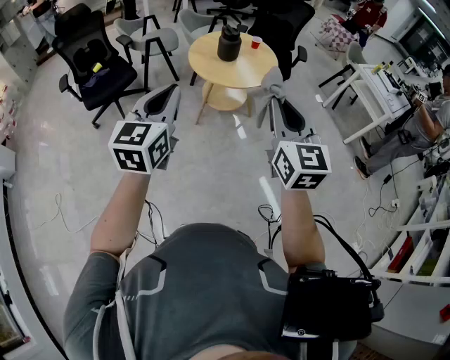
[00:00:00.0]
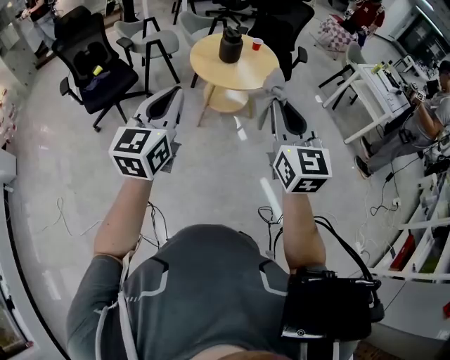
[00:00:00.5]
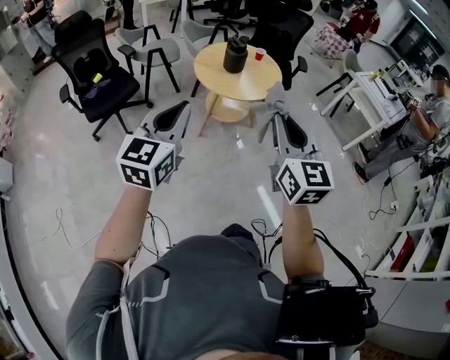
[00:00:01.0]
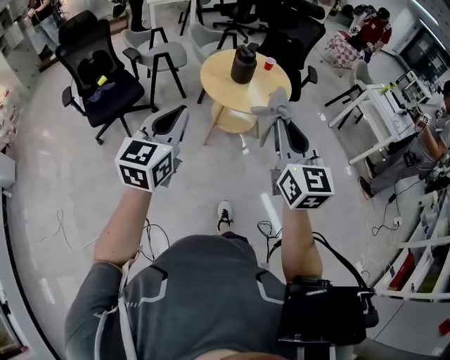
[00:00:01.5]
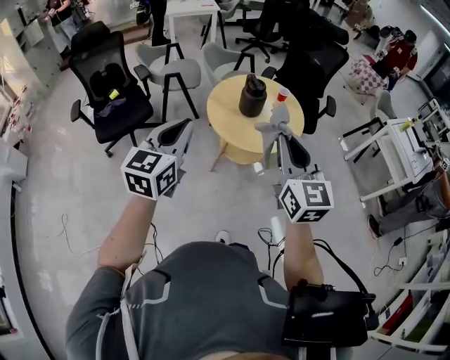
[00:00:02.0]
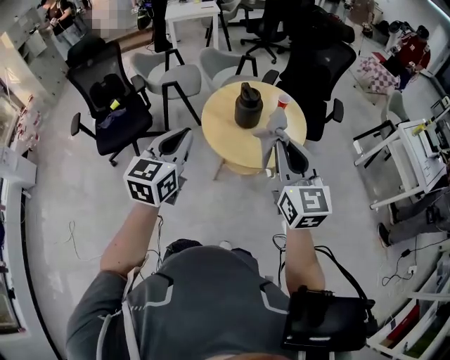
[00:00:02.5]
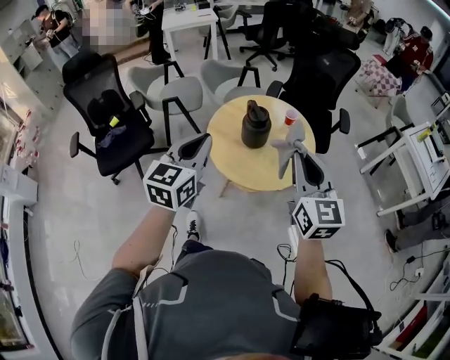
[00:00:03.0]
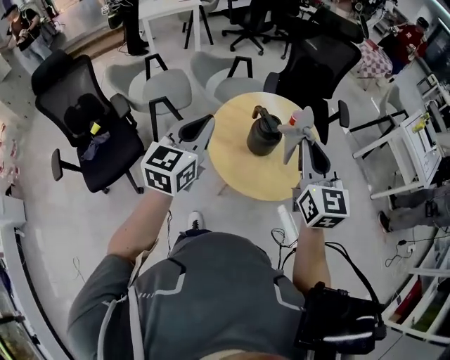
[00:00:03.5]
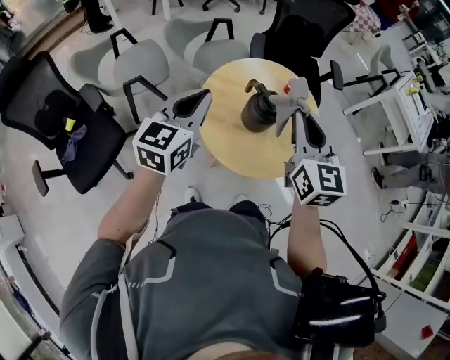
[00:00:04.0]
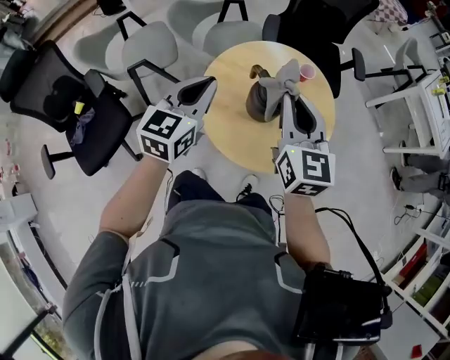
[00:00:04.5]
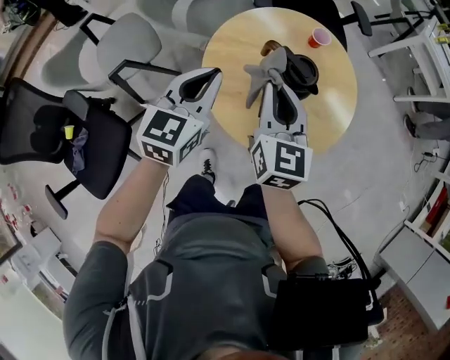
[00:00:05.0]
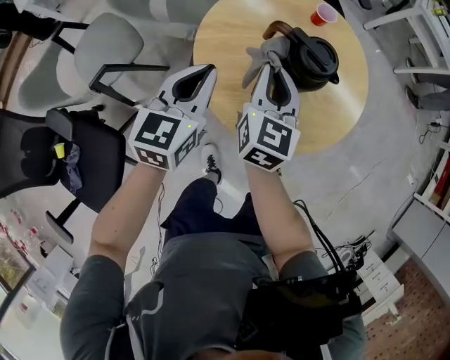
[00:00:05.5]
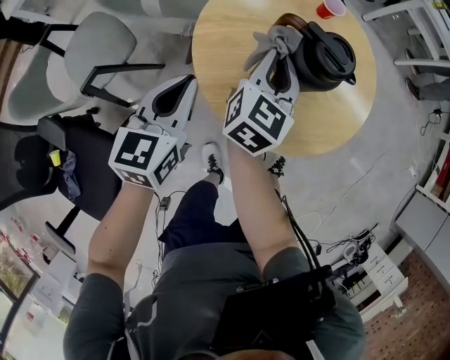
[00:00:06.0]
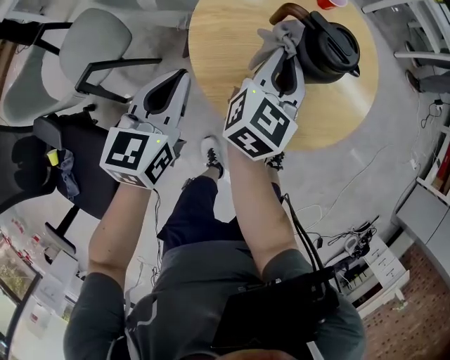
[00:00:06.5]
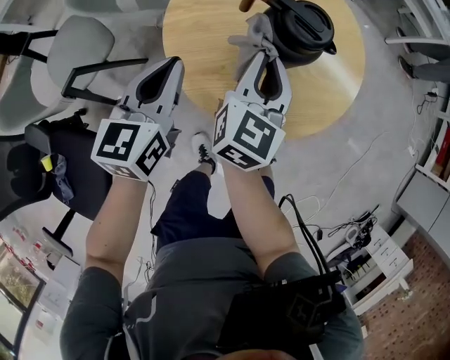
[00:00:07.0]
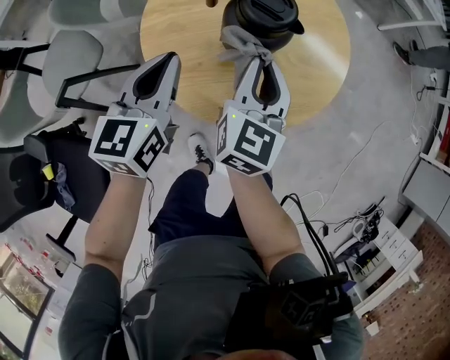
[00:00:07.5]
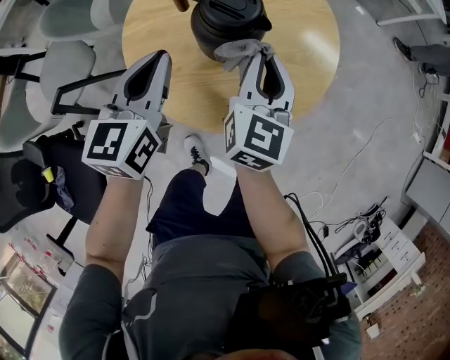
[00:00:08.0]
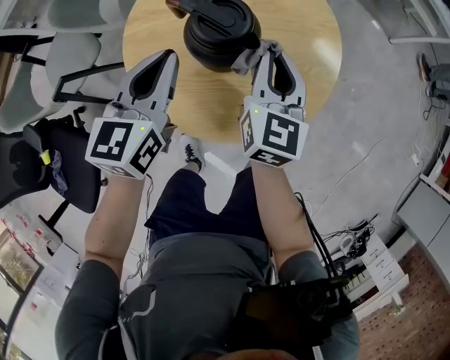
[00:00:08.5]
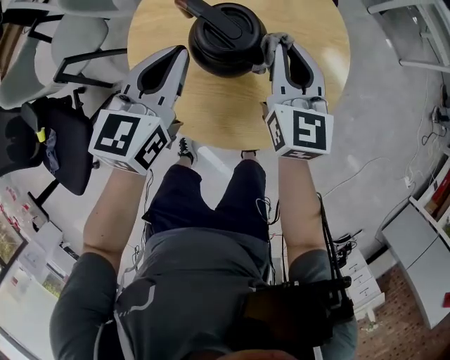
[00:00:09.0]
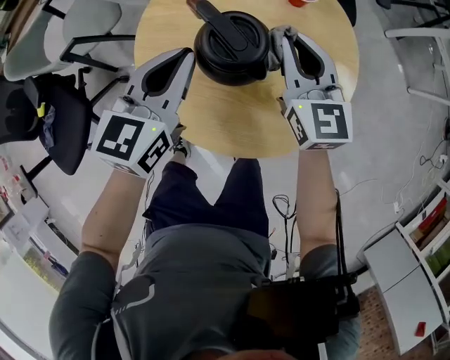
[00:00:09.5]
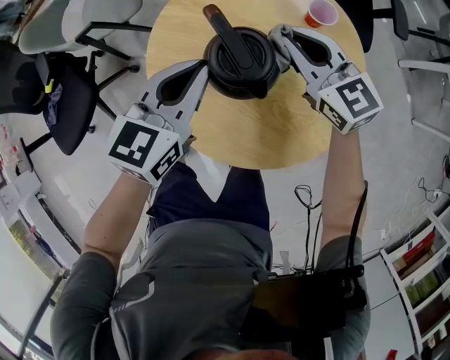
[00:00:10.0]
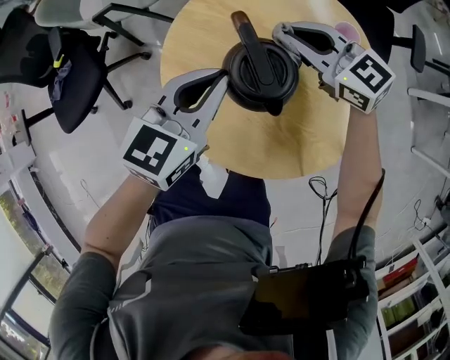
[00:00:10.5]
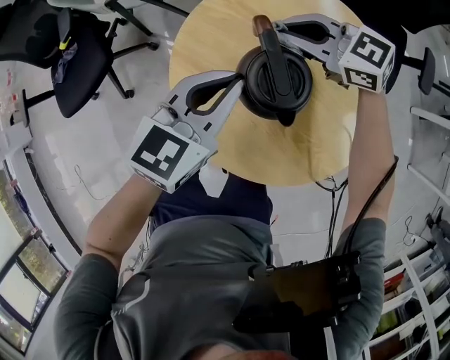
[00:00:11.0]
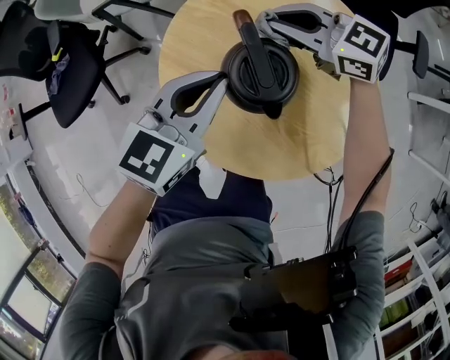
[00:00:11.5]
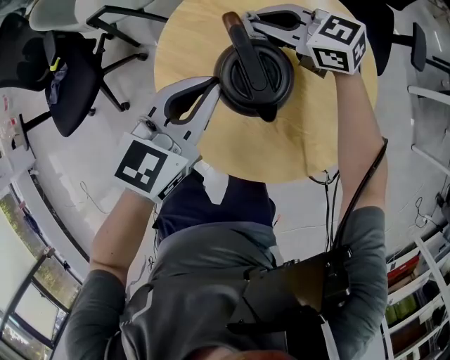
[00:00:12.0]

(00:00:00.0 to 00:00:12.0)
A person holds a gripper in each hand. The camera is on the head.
00:00:00.0 - 00:00:02.0: The grippers both shift forward by about 25 cm.
00:00:02.0 - 00:00:04.0: Both grippers move forward, roughly 40 cm. The right gripper swivels some 20 degrees. The left gripper changes its angle by some 20 degrees.
00:00:04.0 - 00:00:06.0: The grippers both shift downward by approximately 25 cm. The right gripper swivels roughly 50 degrees.
00:00:06.0 - 00:00:08.0: The left gripper shifts roughly 15 cm to the right and forward, while the right gripper shifts some 15 cm to the right.
00:00:08.0 - 00:00:10.0: The right gripper changes place by some 15 cm, and changes its angle by roughly 80 degrees; the left gripper moves about 5 cm.
00:00:10.0 - 00:00:12.0: The right gripper is displaced forward and to the left by roughly 10 cm, and swivels about 40 degrees.

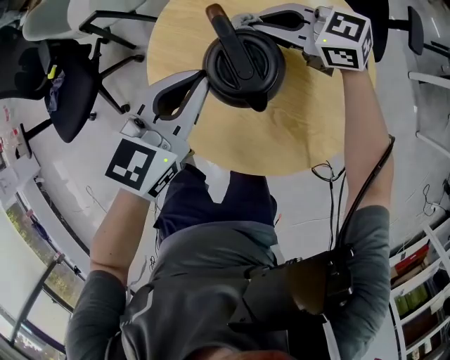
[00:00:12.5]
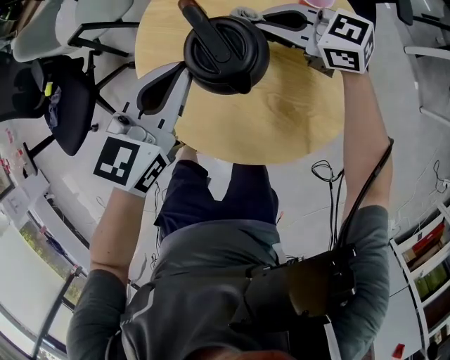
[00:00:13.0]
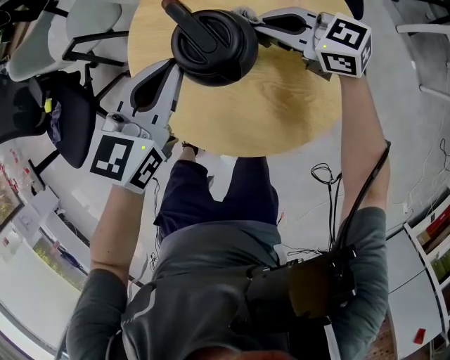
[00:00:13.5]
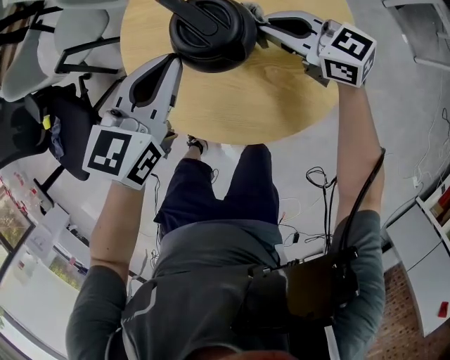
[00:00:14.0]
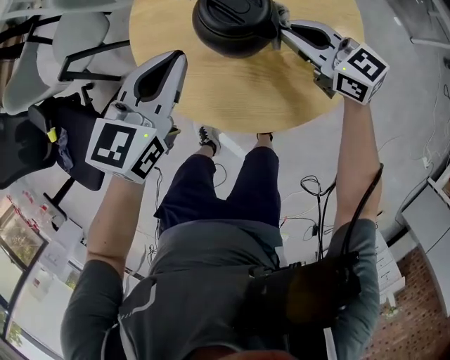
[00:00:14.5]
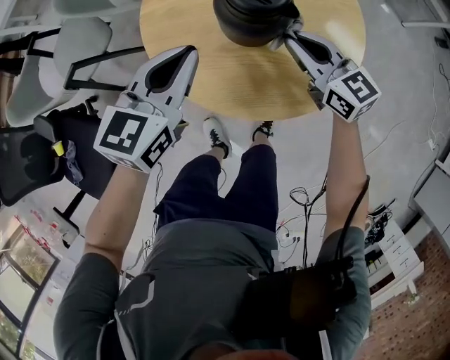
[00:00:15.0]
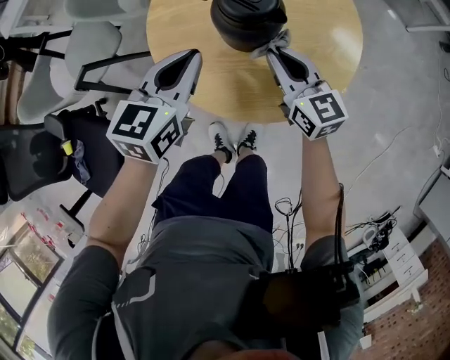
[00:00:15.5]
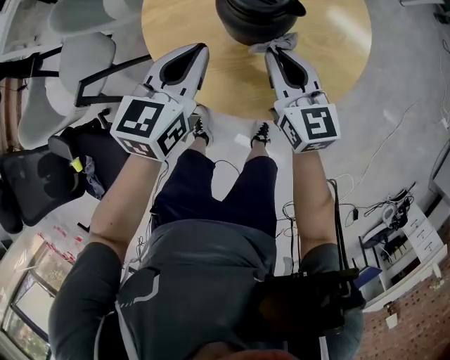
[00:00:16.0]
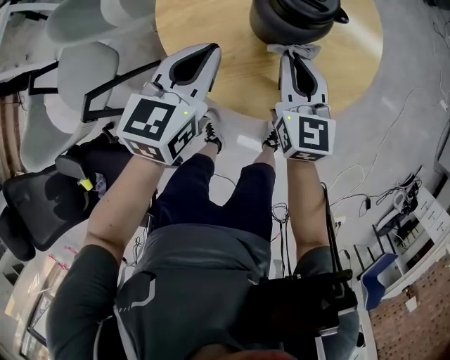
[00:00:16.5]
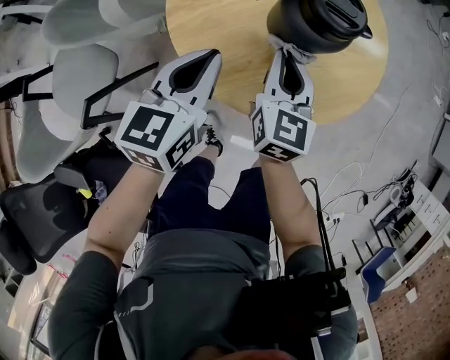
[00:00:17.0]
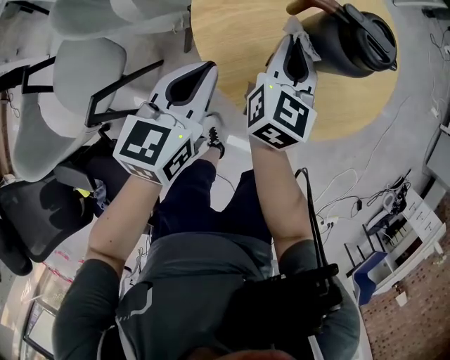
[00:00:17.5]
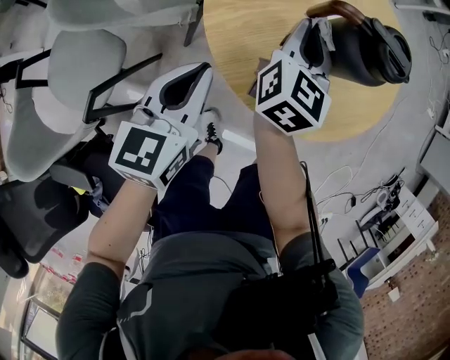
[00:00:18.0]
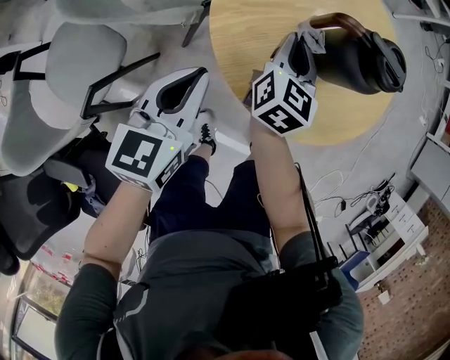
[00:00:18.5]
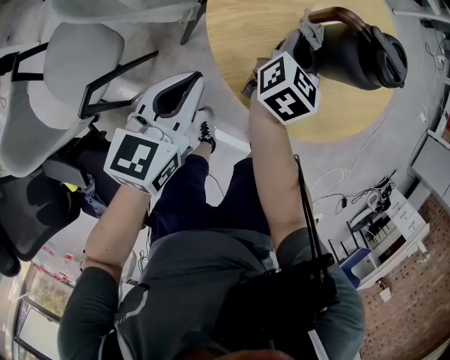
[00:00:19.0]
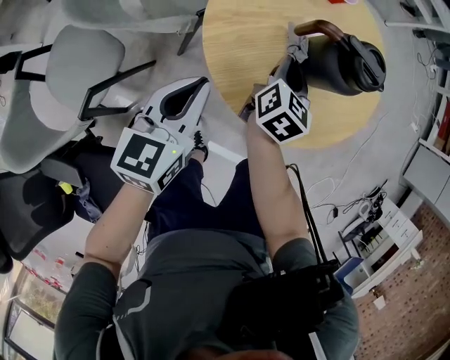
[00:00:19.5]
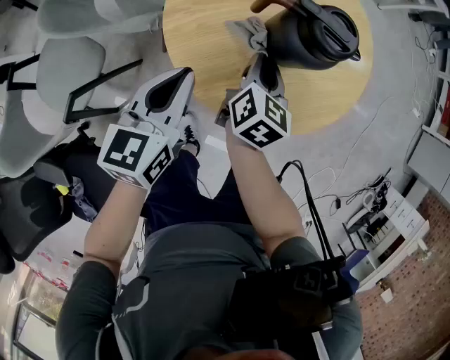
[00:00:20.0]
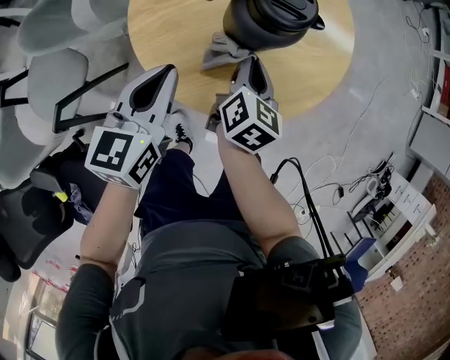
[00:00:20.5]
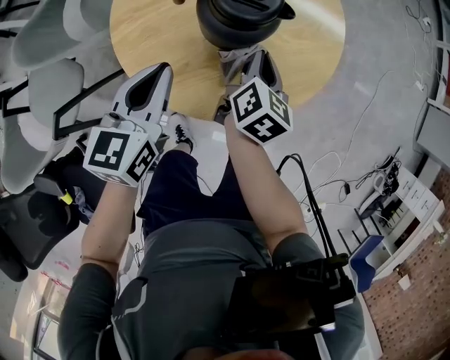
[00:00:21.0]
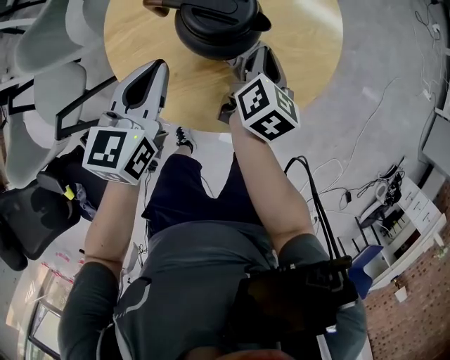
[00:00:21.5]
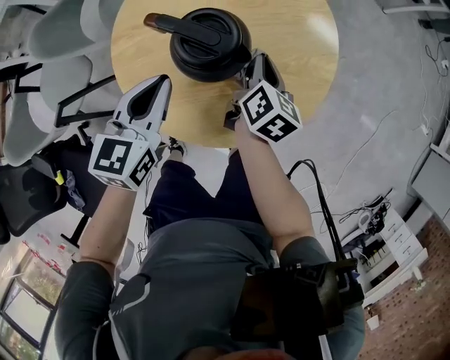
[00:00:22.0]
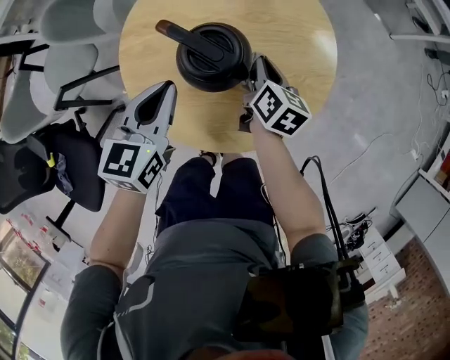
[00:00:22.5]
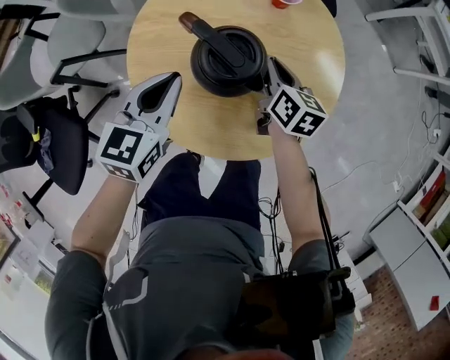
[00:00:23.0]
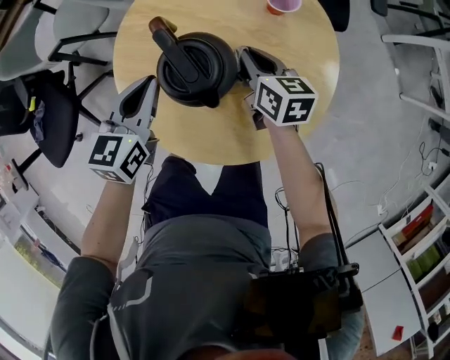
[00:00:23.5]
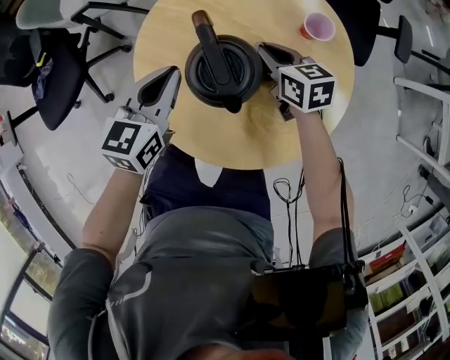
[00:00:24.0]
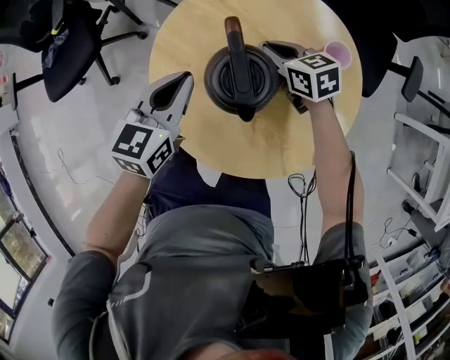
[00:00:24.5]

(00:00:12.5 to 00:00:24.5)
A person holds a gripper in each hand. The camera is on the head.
00:00:12.5 - 00:00:14.5: The right gripper ends up approximately 15 cm from where it was, and turns by roughly 50 degrees.
00:00:14.5 - 00:00:16.5: The left gripper ends up about 10 cm from where it was, and changes its angle by about 20 degrees, while the right gripper shifts by roughly 10 cm, and swivels about 70 degrees.
00:00:16.5 - 00:00:18.5: The right gripper is displaced to the left by roughly 15 cm, and turns by about 30 degrees. The left gripper heads to the left and backward, covering roughly 15 cm.
00:00:18.5 - 00:00:20.5: The two grippers go approximately 15 cm to the right.
00:00:20.5 - 00:00:22.5: The right gripper ends up some 15 cm from where it was, and rotates about 30 degrees. The left gripper shifts by about 10 cm.
00:00:22.5 - 00:00:24.5: The left gripper swivels some 40 degrees, while the right gripper changes place by roughly 15 cm, and swivels some 90 degrees.

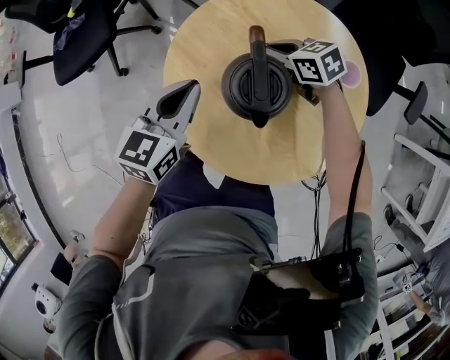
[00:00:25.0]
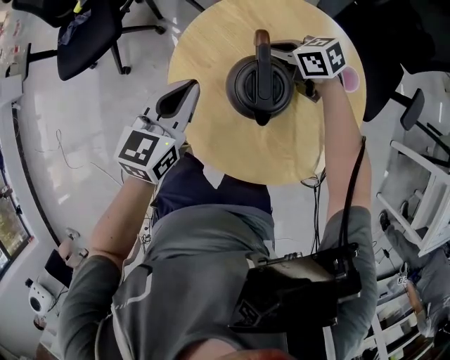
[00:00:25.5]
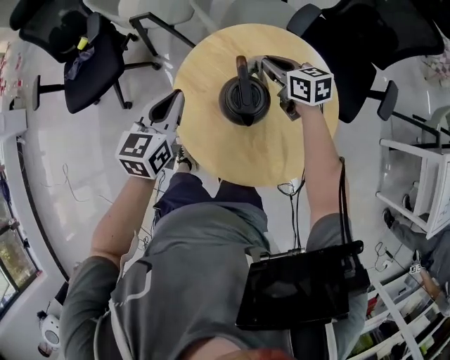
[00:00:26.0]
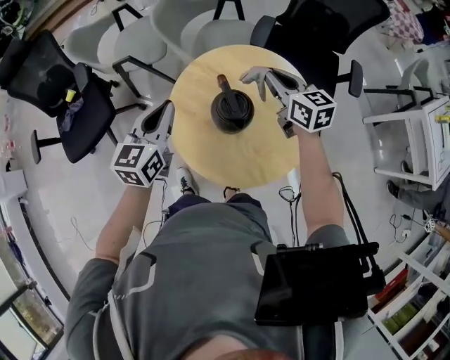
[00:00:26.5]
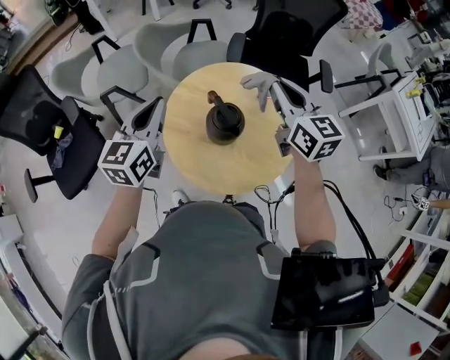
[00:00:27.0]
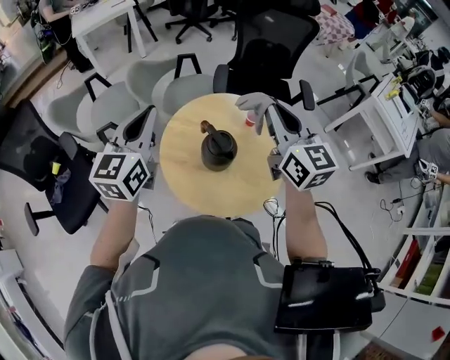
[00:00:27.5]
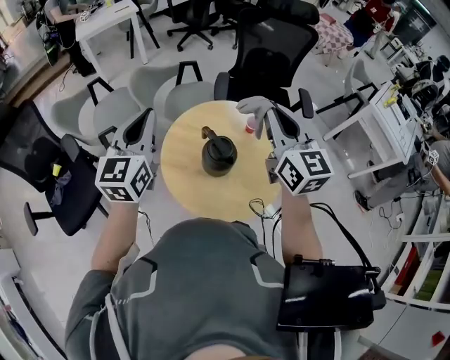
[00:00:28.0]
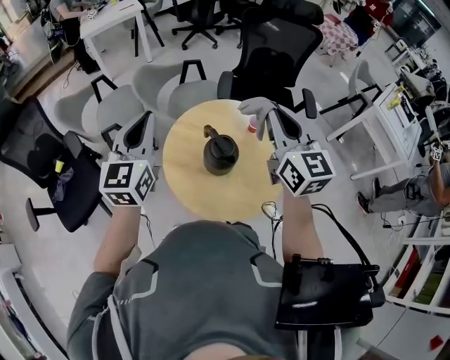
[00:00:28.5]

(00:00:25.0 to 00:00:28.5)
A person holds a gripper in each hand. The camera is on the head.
00:00:25.0 - 00:00:27.0: The right gripper travels upward by roughly 40 cm, and points its fingers about 30 degrees further upward, while the left gripper heads upward, covering about 25 cm, and changes its angle by roughly 20 degrees.
00:00:27.0 - 00:00:28.5: The left gripper goes roughly 10 cm upward. Meanwhile the right gripper moves upward and backward, roughly 10 cm.
